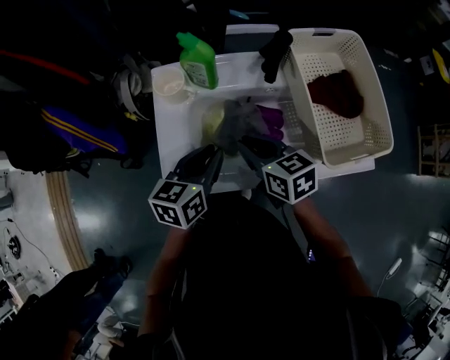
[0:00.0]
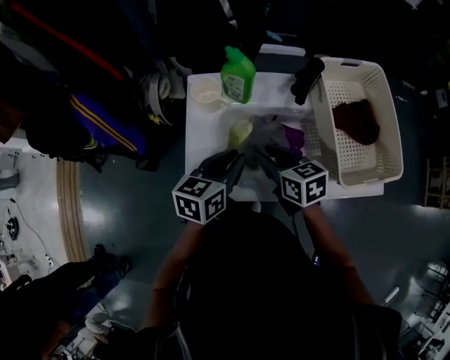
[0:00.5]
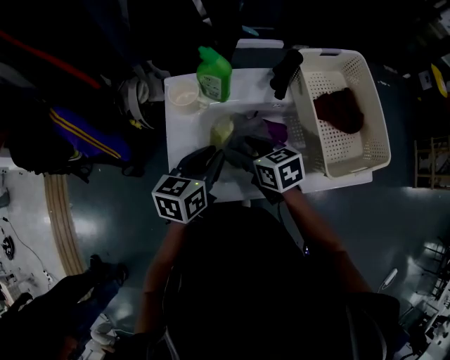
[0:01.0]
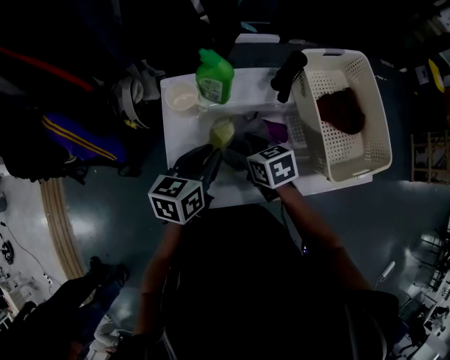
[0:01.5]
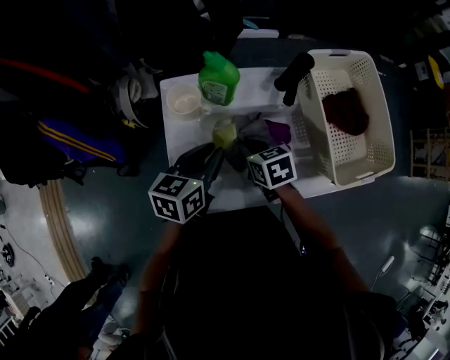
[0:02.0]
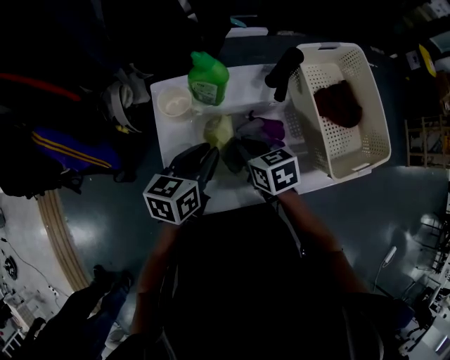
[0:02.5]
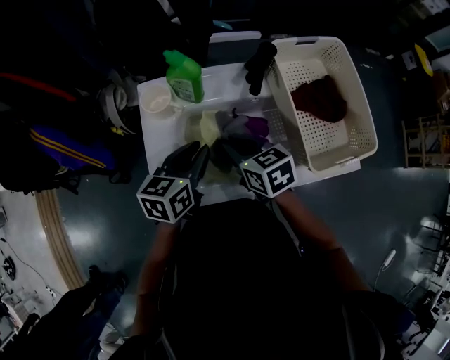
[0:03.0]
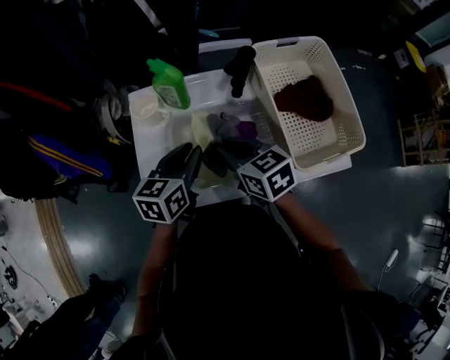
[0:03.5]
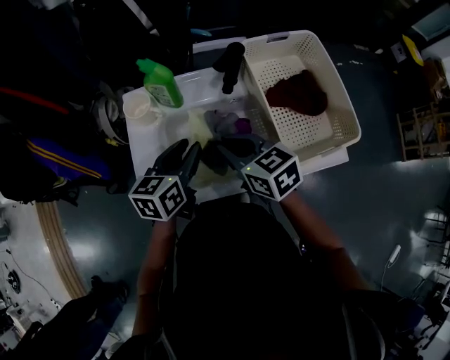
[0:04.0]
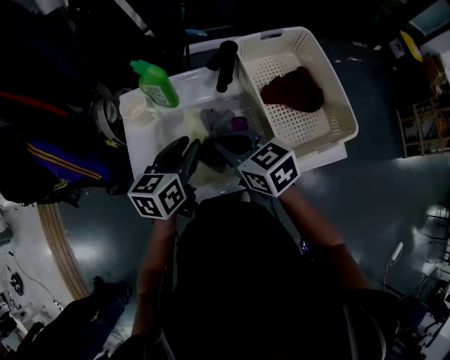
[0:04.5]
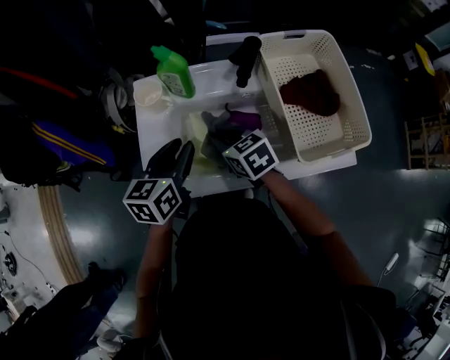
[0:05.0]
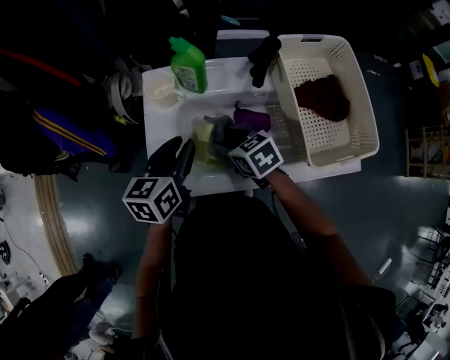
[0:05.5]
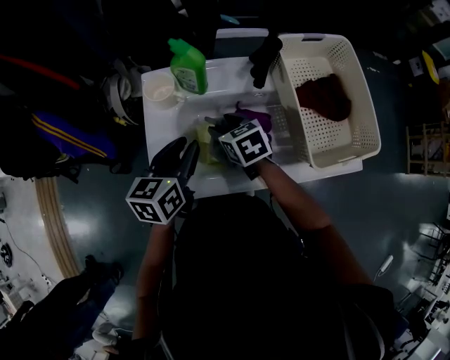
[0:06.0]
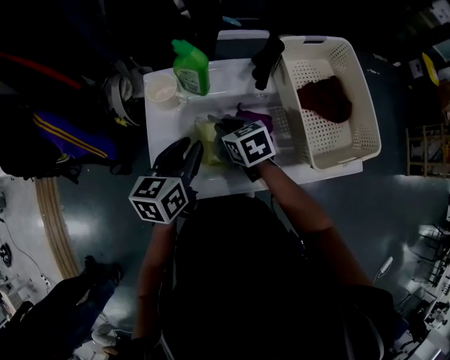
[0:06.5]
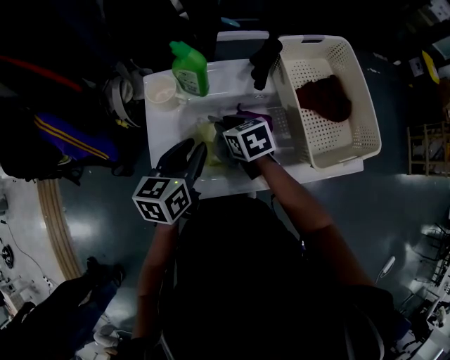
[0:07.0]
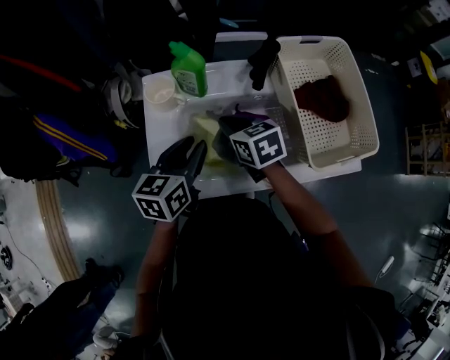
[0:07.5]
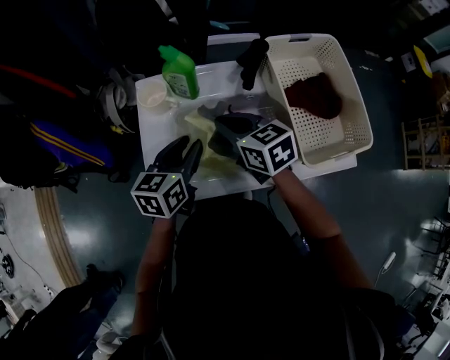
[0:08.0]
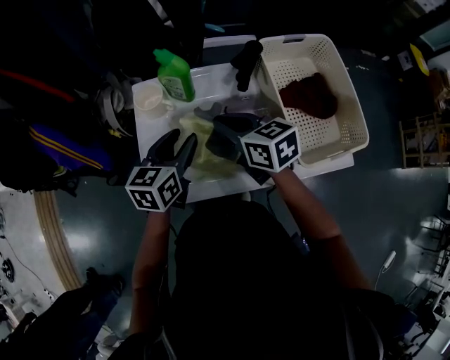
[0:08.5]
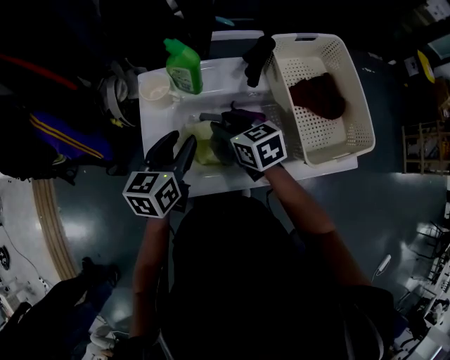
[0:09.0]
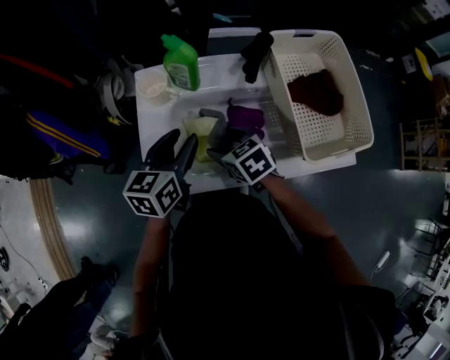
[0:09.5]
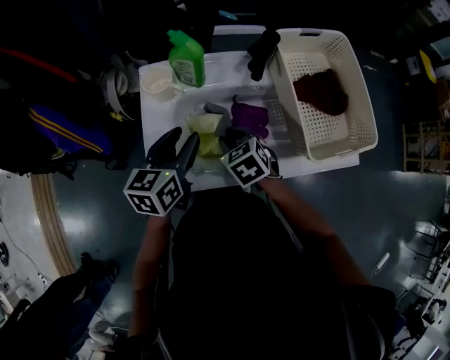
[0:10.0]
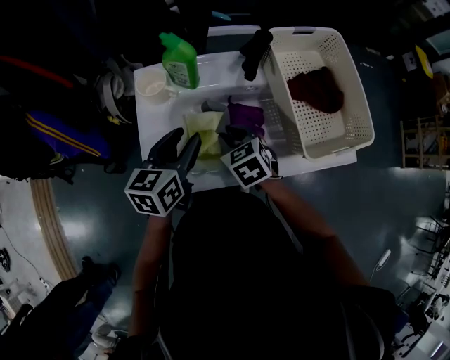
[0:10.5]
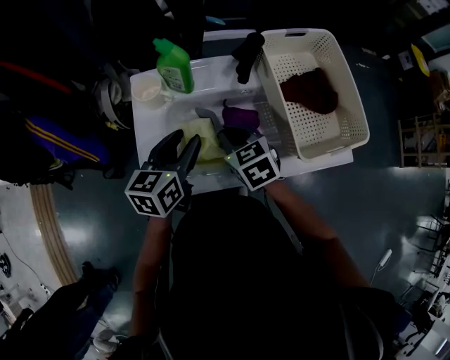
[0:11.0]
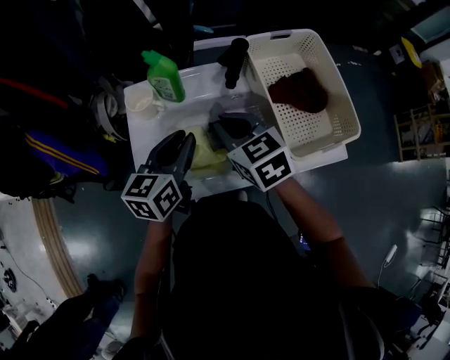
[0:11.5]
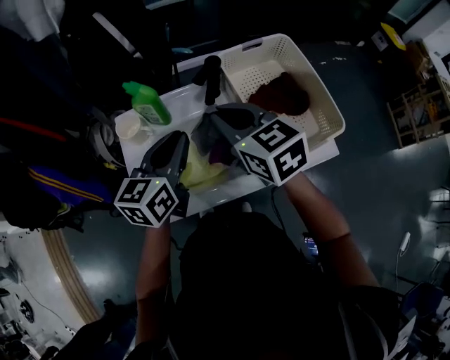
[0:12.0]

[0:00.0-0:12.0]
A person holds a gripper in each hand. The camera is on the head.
0:00.0 to 0:02.0: The right gripper moves downward and forward, approximately 10 cm, and opens, then closes once more. Meanwhile the left gripper moves forward, approximately 5 cm.
0:02.0 to 0:04.0: The right gripper travels upward and to the right by approximately 15 cm, and rotates roughly 20 degrees, while the left gripper heads to the right, covering about 5 cm.
0:04.0 to 0:06.0: The right gripper moves downward and forward, some 15 cm, and opens up. Meanwhile the left gripper goes roughly 5 cm to the left.
0:06.0 to 0:08.0: The right gripper moves upward, roughly 10 cm, and closes its fingers.
0:08.0 to 0:10.0: The right gripper heads downward, covering about 10 cm, turns by approximately 30 degrees, and opens its fingers.
0:10.0 to 0:12.0: The right gripper heads upward, covering approximately 25 cm, changes its angle by about 30 degrees, and closes; the left gripper shifts about 15 cm upward and to the right, and closes.

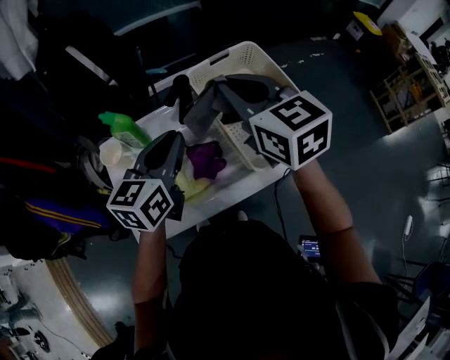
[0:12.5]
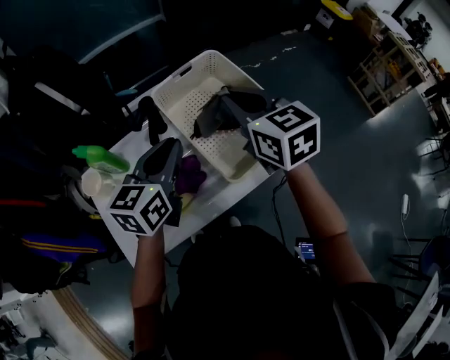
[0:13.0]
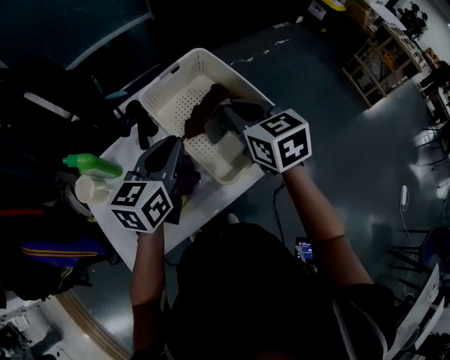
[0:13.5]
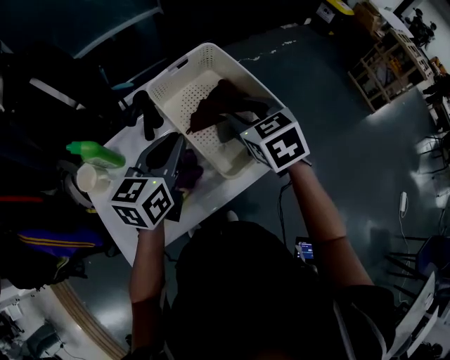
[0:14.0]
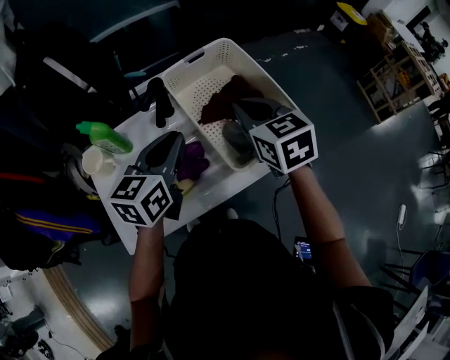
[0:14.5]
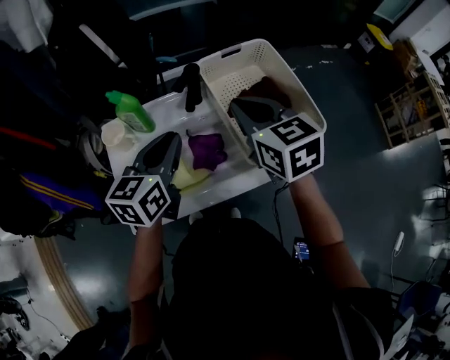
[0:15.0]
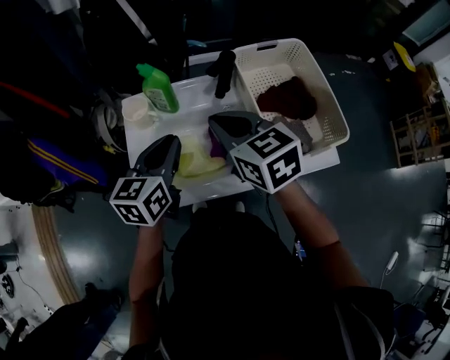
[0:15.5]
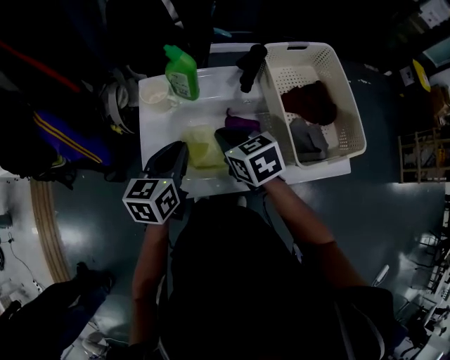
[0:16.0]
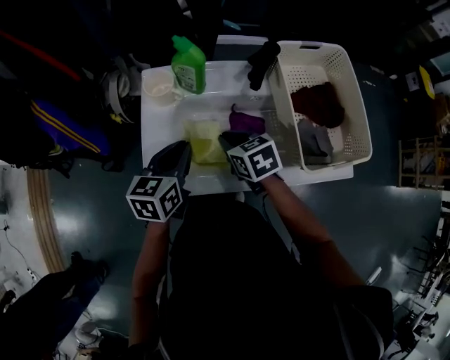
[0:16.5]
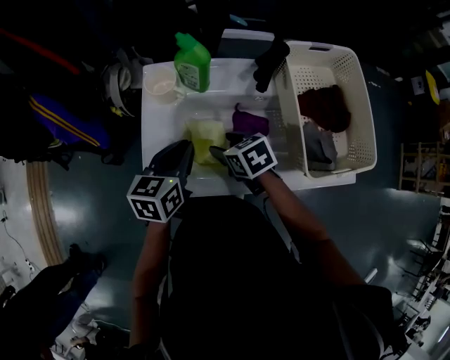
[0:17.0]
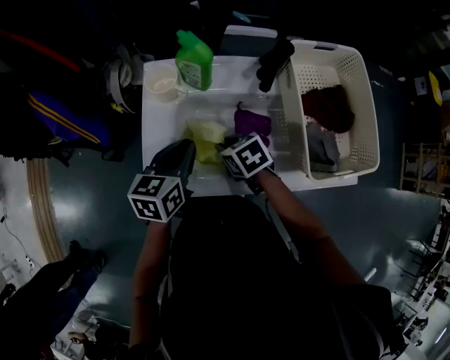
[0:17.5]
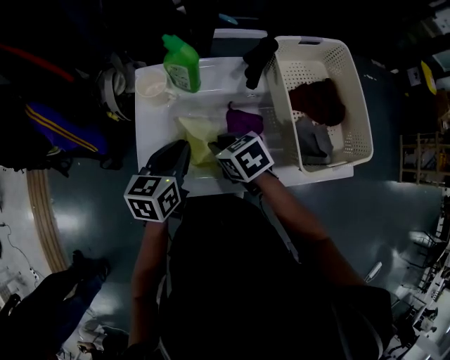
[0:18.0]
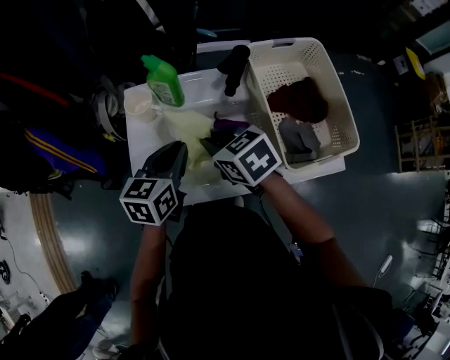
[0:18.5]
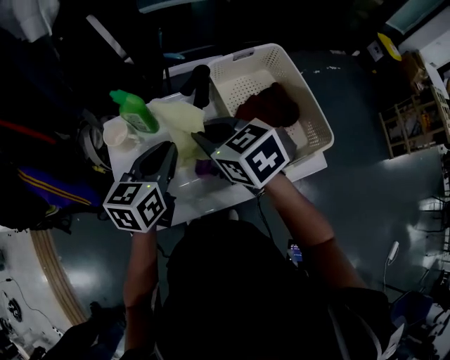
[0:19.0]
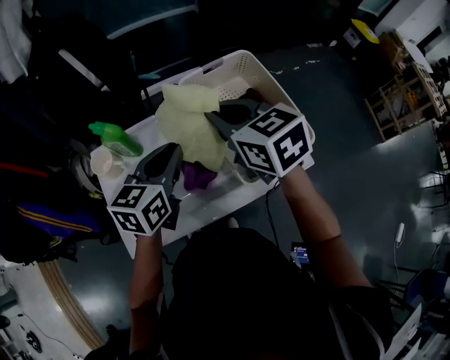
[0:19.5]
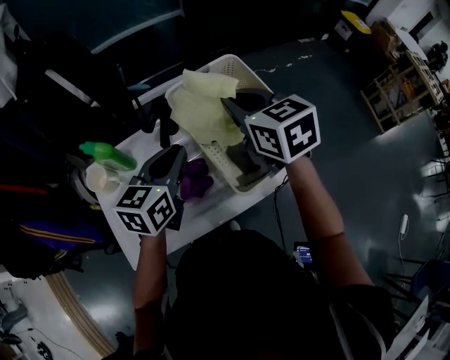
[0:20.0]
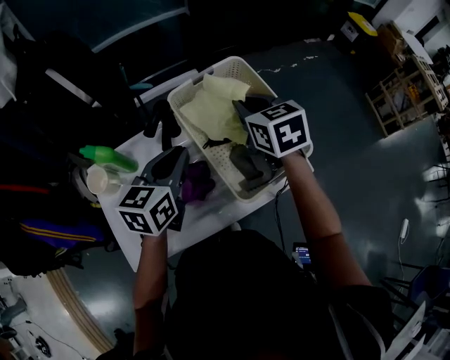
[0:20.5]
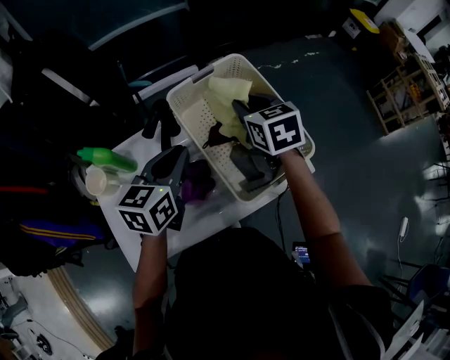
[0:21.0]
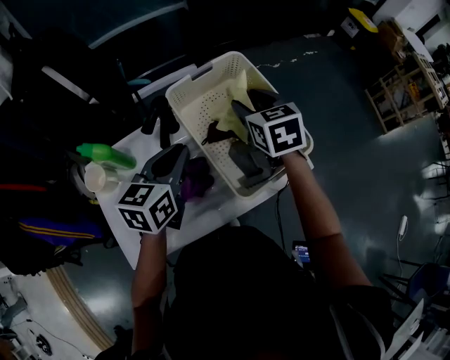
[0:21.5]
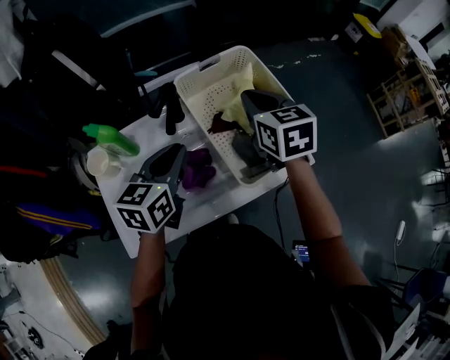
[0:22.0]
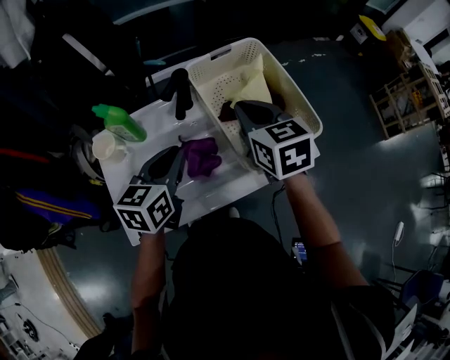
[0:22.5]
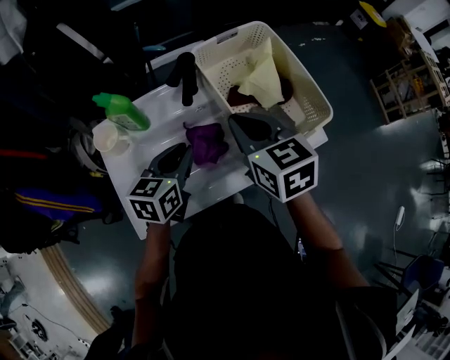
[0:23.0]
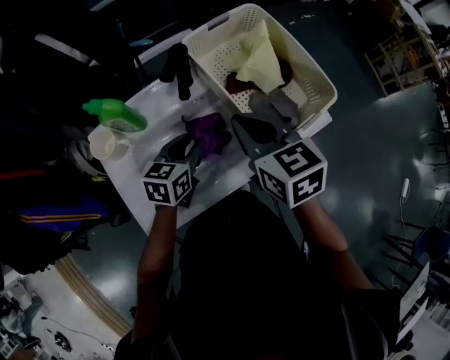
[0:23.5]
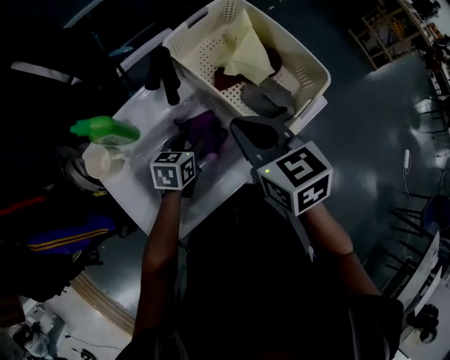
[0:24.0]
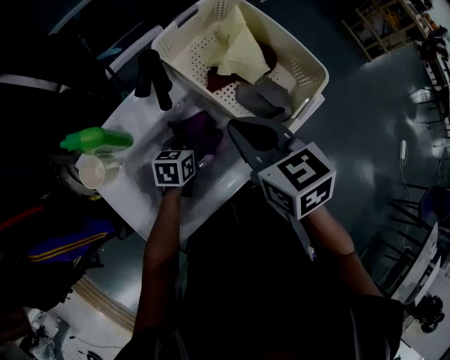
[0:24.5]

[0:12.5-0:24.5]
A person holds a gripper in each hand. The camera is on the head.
0:12.5 to 0:14.5: The left gripper shifts roughly 5 cm to the right. The right gripper heads to the right and downward, covering some 15 cm, and opens and closes again.
0:14.5 to 0:16.5: The right gripper ends up some 30 cm from where it was, and rotates about 30 degrees, while the left gripper shifts by roughly 25 cm, and turns by roughly 30 degrees.
0:16.5 to 0:18.5: The right gripper goes some 10 cm upward, and opens, then closes once more, while the left gripper changes place by about 5 cm.
0:18.5 to 0:20.5: The left gripper ends up approximately 20 cm from where it was. Meanwhile the right gripper moves about 30 cm, and turns by roughly 40 degrees.
0:20.5 to 0:22.5: Both grippers move backward, approximately 10 cm. The right gripper opens and closes again.
0:22.5 to 0:24.5: The left gripper moves downward, roughly 20 cm, swivels about 30 degrees, and opens up; the right gripper moves backward, roughly 5 cm.

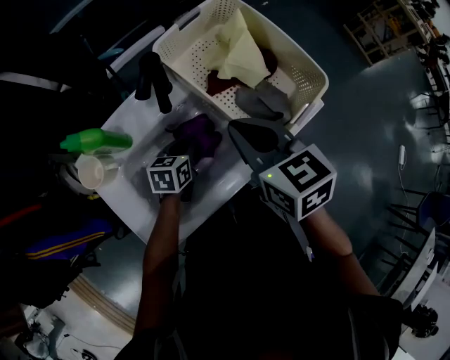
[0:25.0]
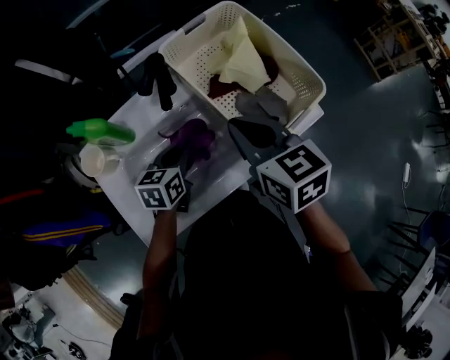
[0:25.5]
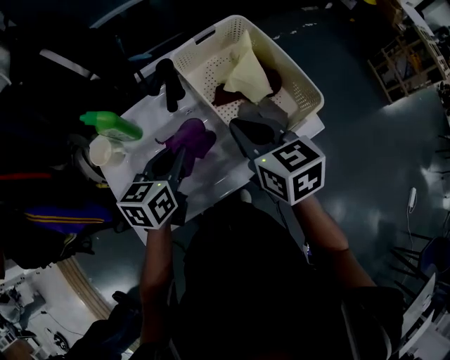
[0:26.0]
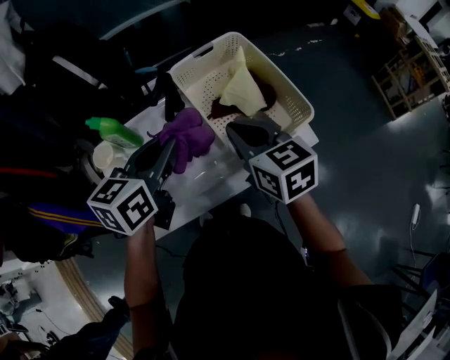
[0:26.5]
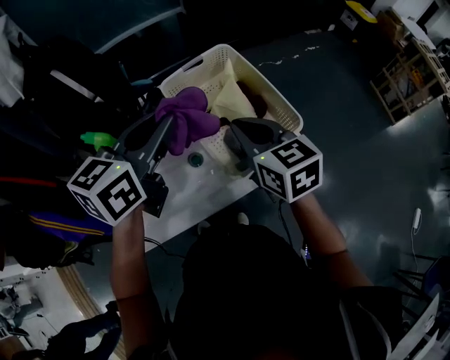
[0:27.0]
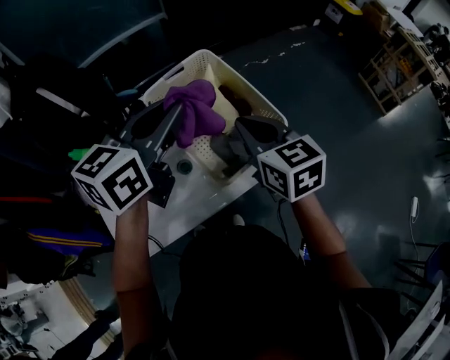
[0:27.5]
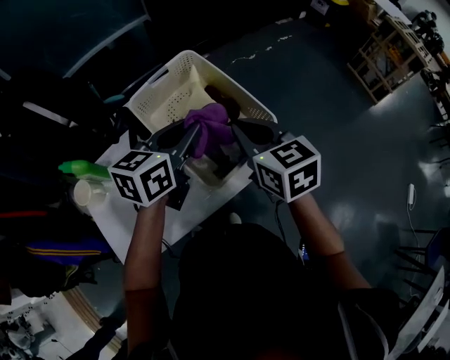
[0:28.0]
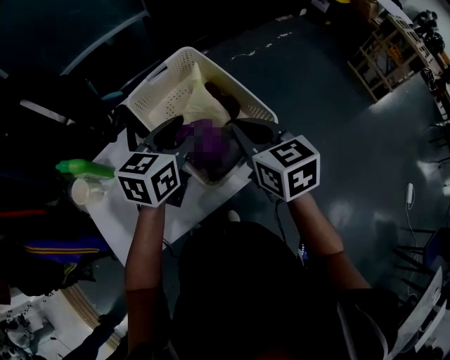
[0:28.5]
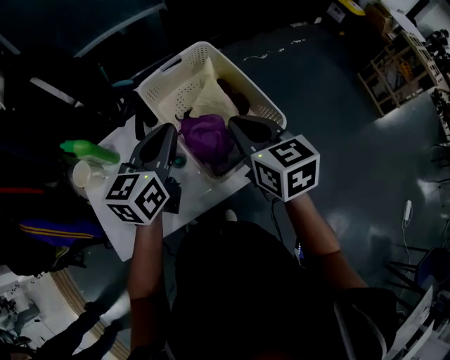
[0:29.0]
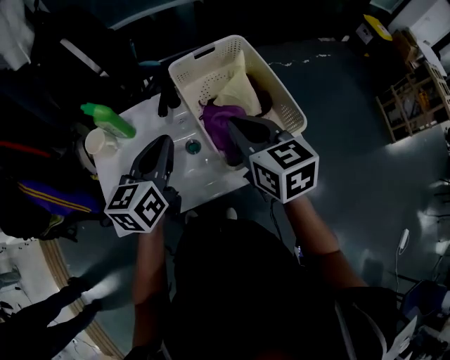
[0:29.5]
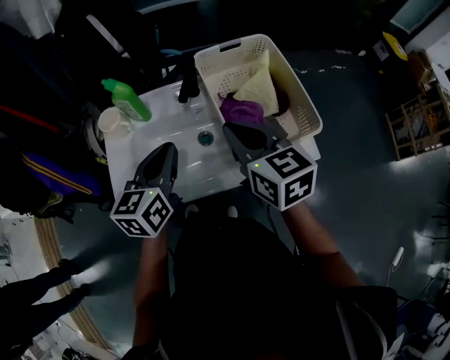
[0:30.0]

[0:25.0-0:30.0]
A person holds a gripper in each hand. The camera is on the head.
0:25.0 to 0:27.5: The left gripper heads upward, covering roughly 40 cm, and rotates some 30 degrees, while the right gripper moves to the right and upward, approximately 15 cm.
0:27.5 to 0:30.0: The left gripper moves some 25 cm, rotates approximately 30 degrees, and opens, then closes again; the right gripper ends up roughly 15 cm from where it was.
